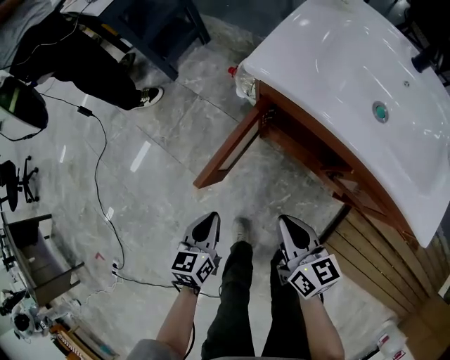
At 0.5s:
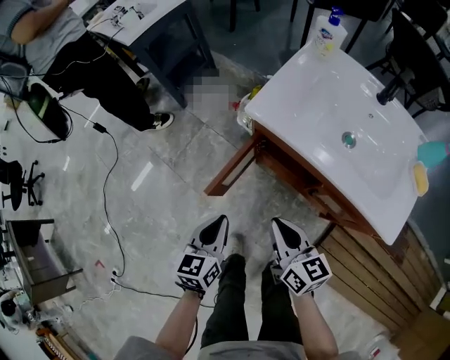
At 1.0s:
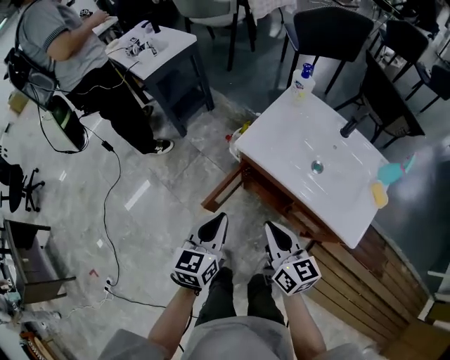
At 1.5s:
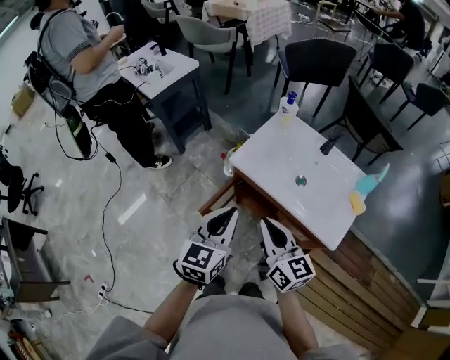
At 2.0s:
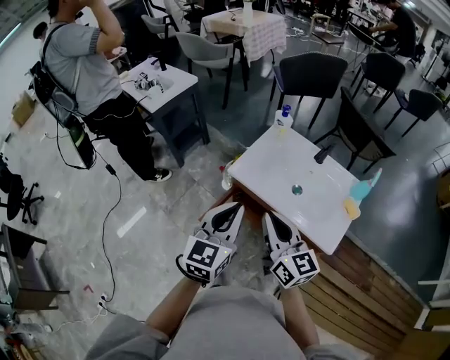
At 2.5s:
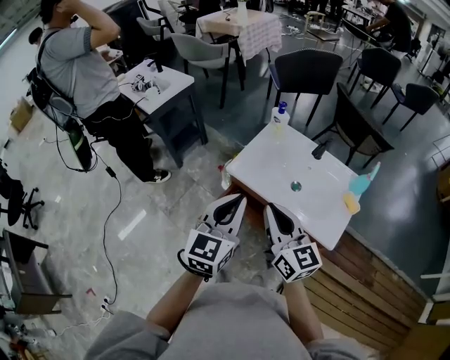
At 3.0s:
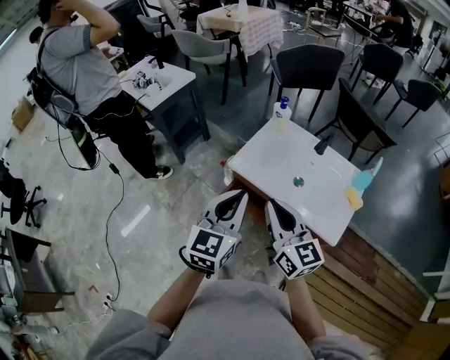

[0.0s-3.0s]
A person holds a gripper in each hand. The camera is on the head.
0.0s to 1.5s: Both grippers move upward, roughly 40 cm. The right gripper changes its angle by roughly 20 degrees. Meanwhile the left gripper changes its angle by roughly 30 degrees.
1.5s to 3.0s: Both grippers move upward, about 5 cm.

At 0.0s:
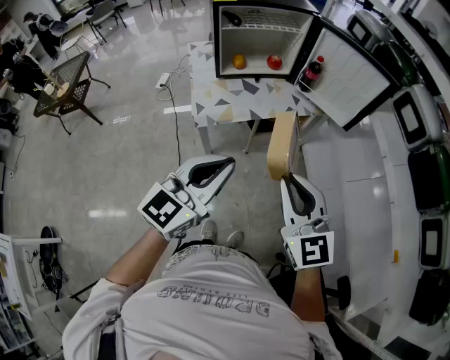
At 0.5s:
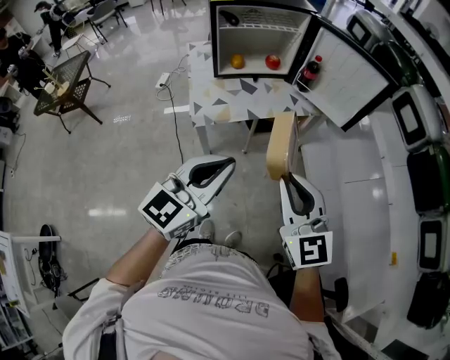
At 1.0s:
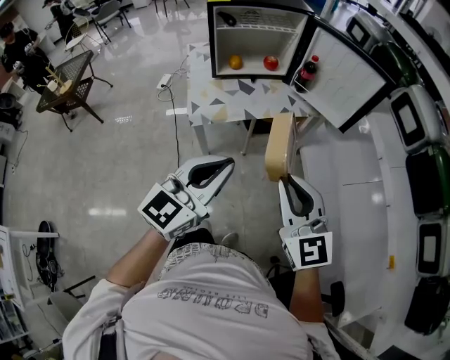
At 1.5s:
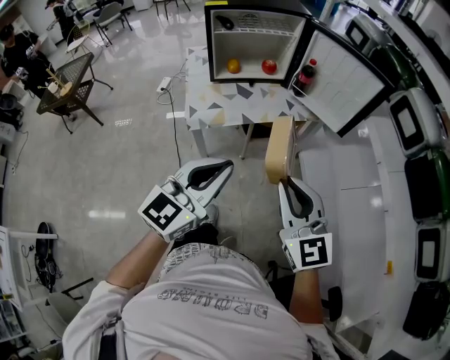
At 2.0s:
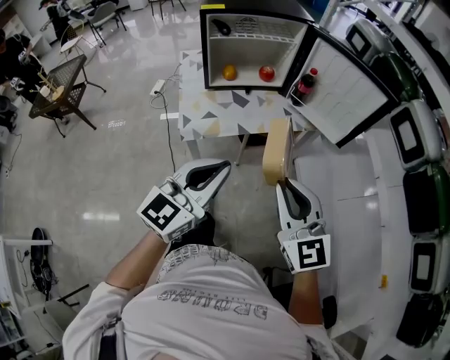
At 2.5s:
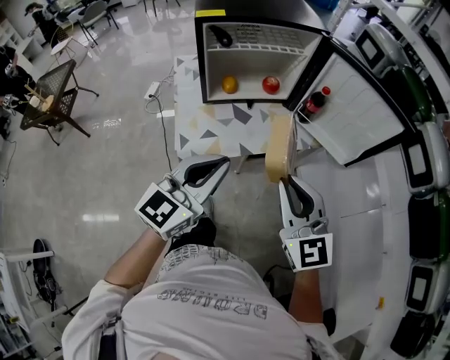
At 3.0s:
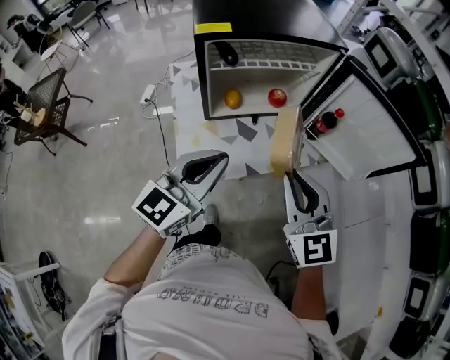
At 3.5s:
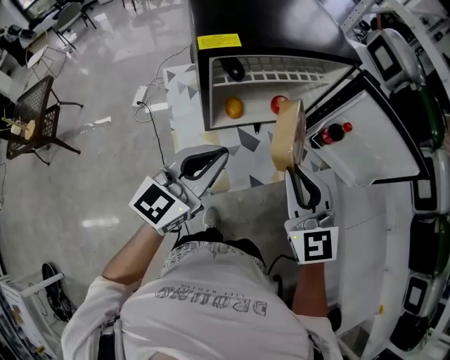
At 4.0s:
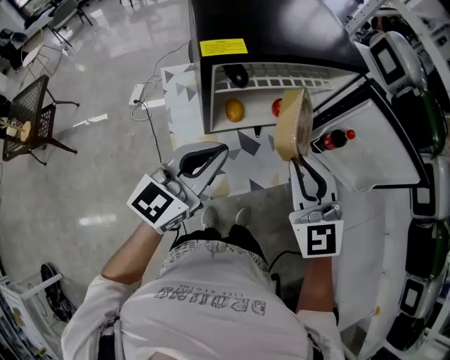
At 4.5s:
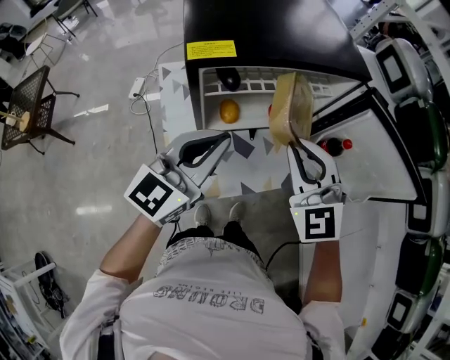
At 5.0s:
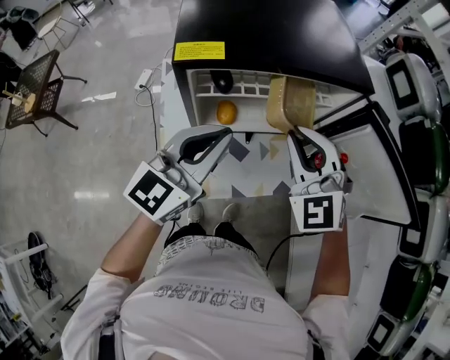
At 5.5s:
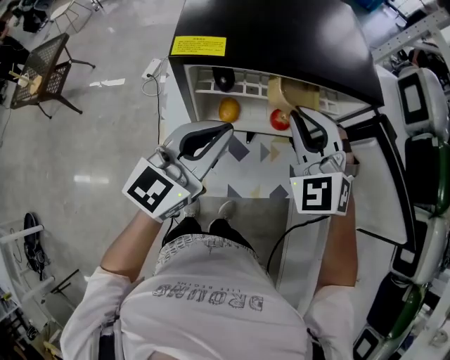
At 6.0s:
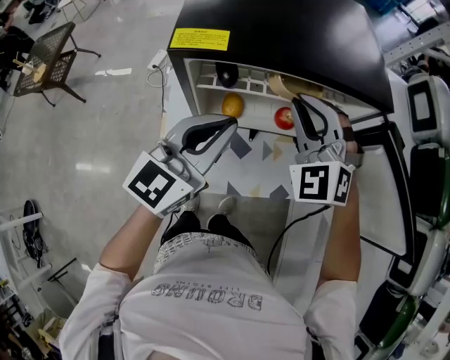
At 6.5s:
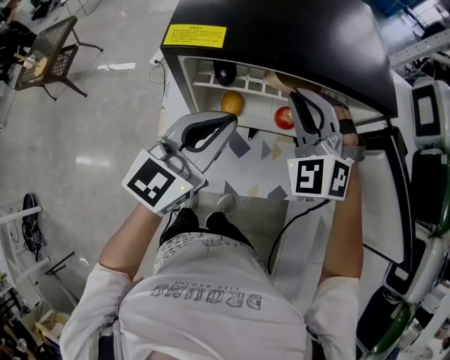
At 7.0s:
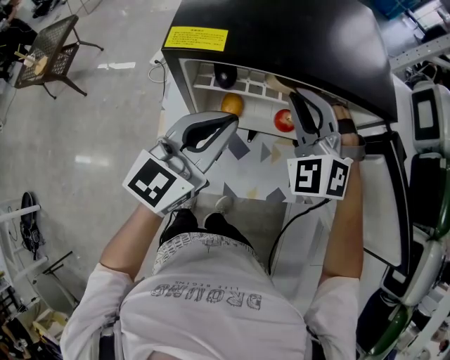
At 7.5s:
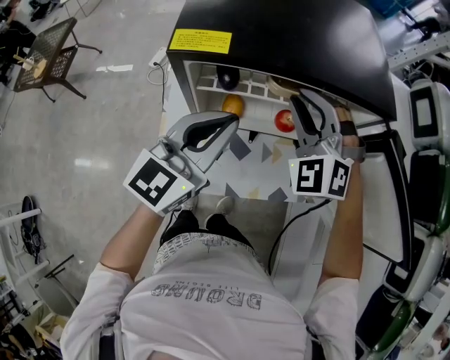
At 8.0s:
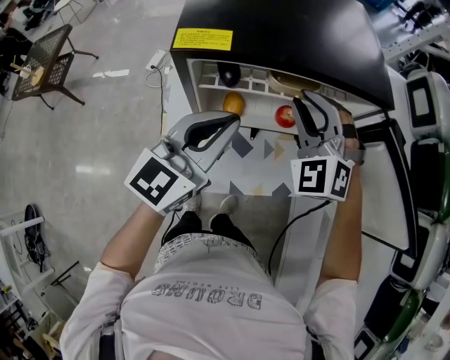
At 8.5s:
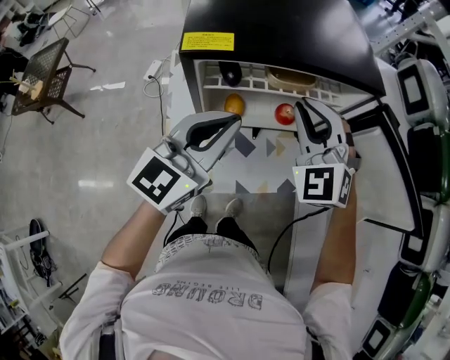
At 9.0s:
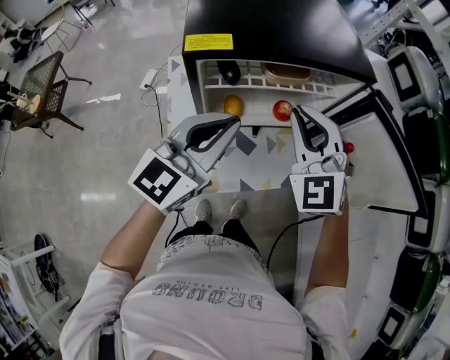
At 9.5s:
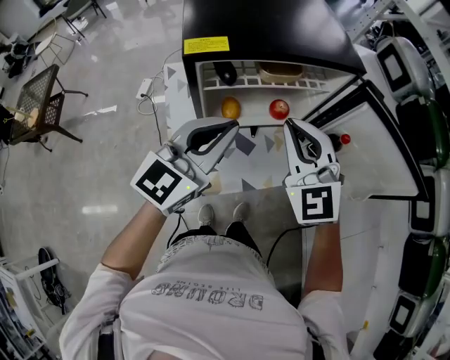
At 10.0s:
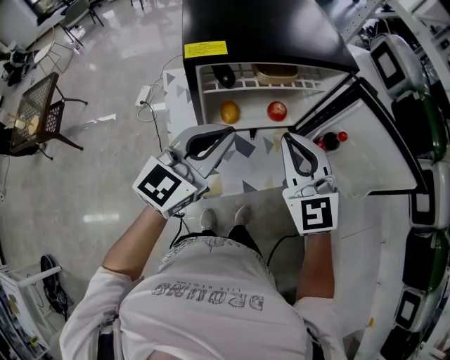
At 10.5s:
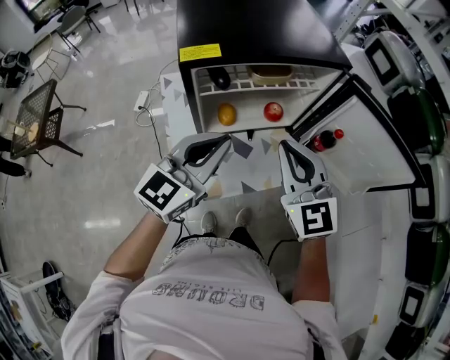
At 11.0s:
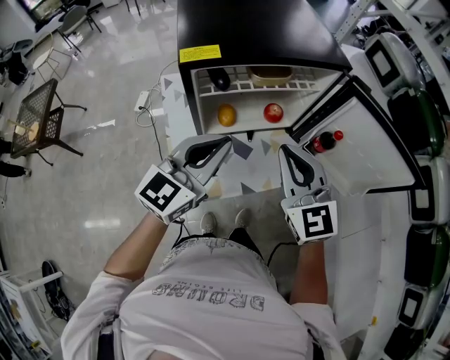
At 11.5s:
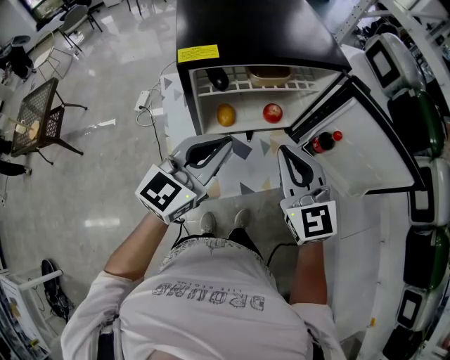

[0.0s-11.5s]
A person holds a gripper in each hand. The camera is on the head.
0.0s to 2.0s: Both grippers travel together forward, approximately 5 cm.
2.0s to 4.0s: The two grippers go roughly 40 cm forward and to the left.
4.0s to 6.0s: The right gripper is displaced forward by approximately 20 cm, and rotates approximately 40 degrees; the left gripper heads forward and to the right, covering approximately 10 cm.
6.0s to 7.5s: There are only small adjustments of the grippers.
7.5s to 9.5s: The left gripper shifts roughly 5 cm backward; the right gripper shifts some 15 cm backward, and rotates some 30 degrees.
9.5s to 11.5s: The right gripper ends up about 5 cm from where it was, and turns by about 20 degrees.

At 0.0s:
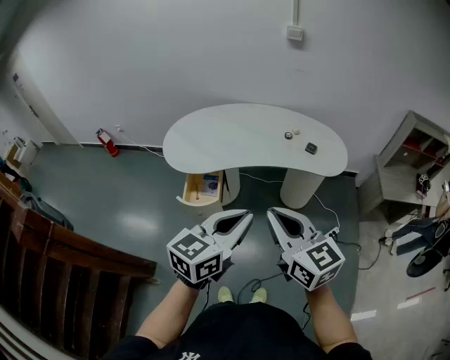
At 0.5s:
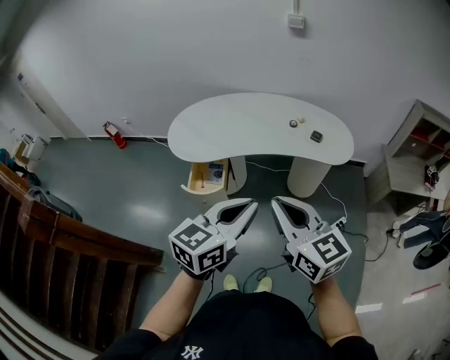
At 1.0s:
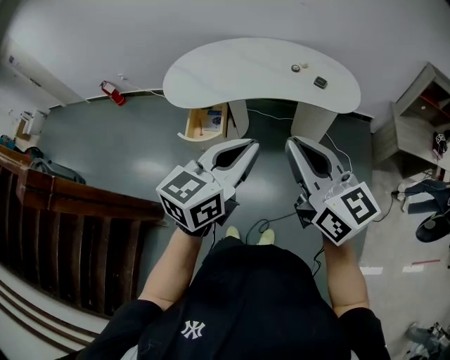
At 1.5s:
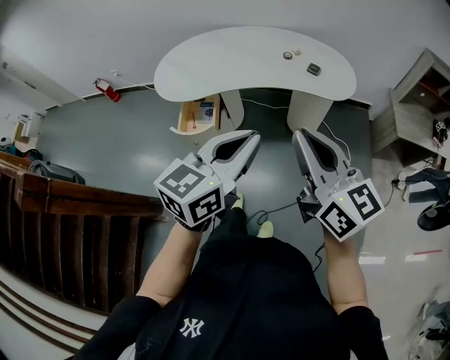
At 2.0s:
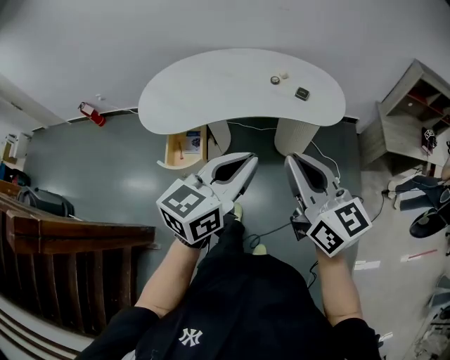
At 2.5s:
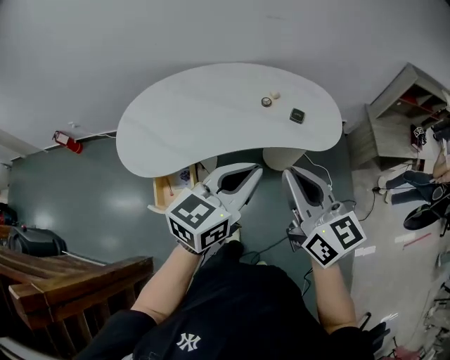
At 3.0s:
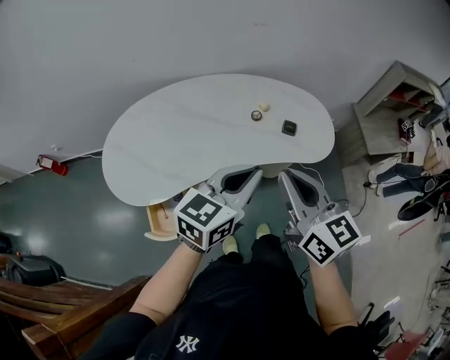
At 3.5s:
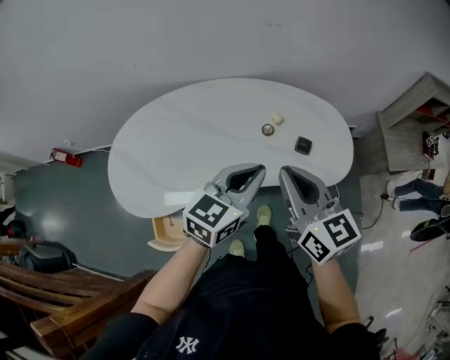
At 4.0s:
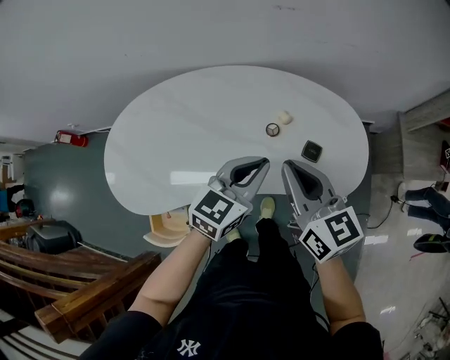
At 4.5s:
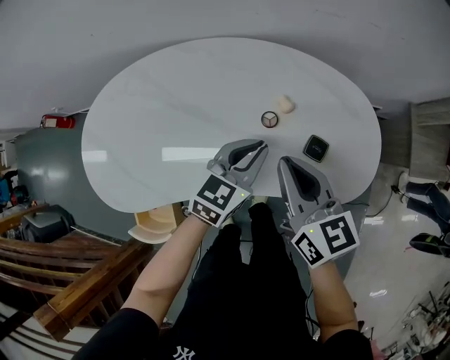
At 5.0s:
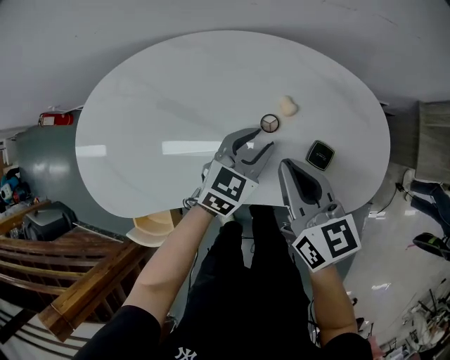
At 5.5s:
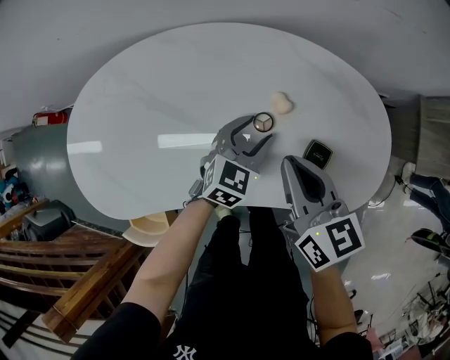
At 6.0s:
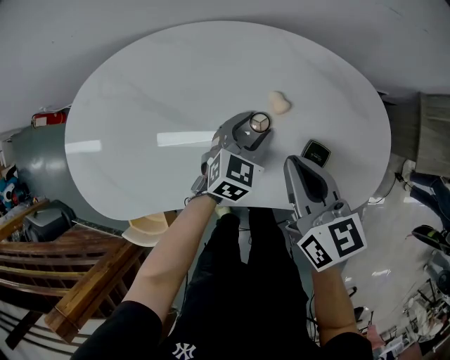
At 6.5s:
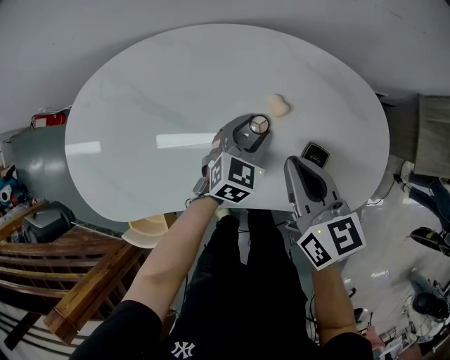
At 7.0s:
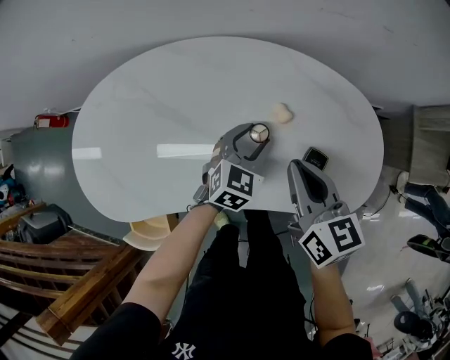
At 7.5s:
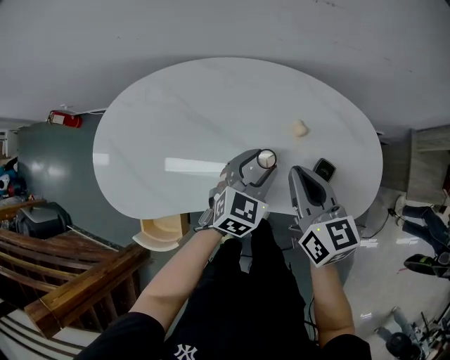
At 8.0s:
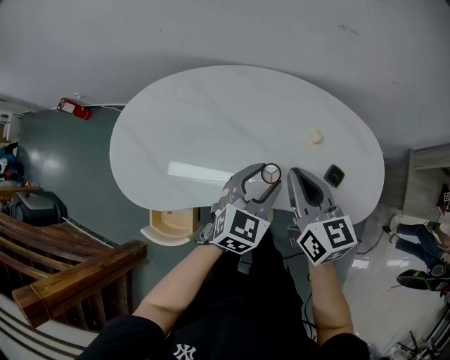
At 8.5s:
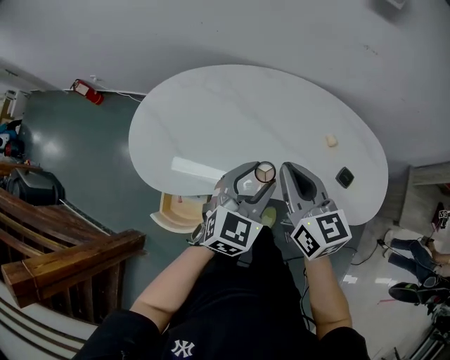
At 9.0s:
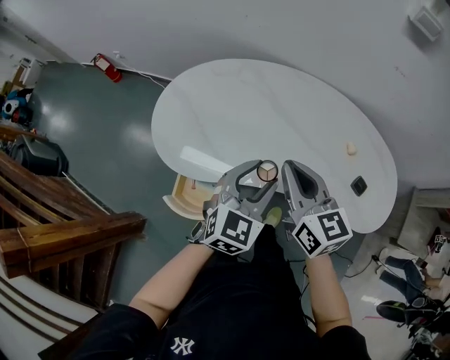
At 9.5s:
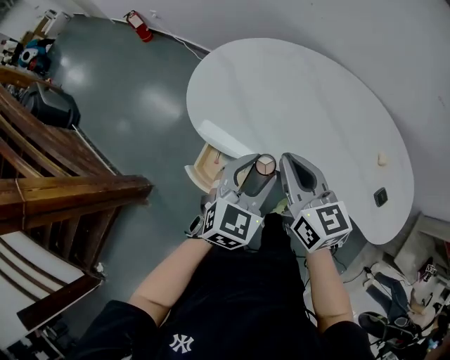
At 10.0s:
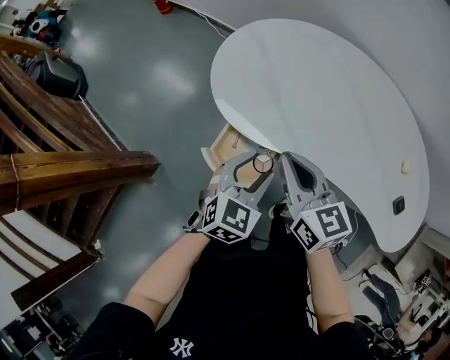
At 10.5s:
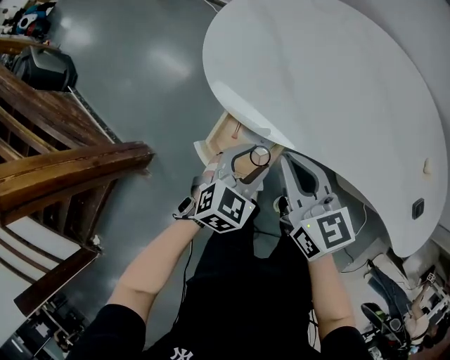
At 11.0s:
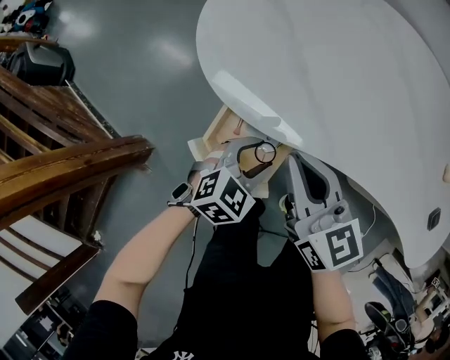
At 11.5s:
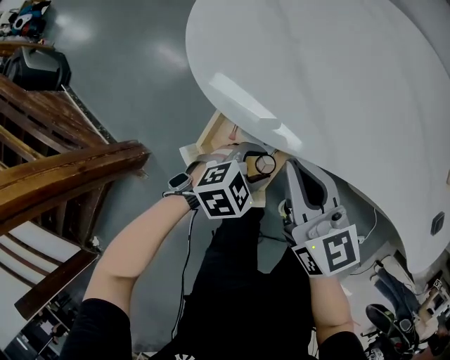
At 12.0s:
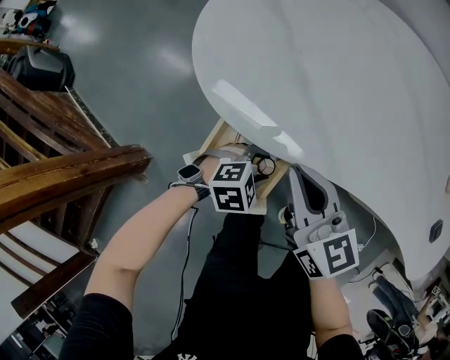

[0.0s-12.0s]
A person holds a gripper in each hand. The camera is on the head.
0.0s to 2.0s: Both grippers move to the right and forward, about 15 cm.
2.0s to 4.0s: The two grippers travel together, forward, roughly 40 cm.
4.0s to 6.0s: The left gripper travels downward and forward by roughly 30 cm, rotates some 20 degrees, and opens its fingers, while the right gripper travels downward and forward by roughly 20 cm.
6.0s to 8.0s: The left gripper is displaced upward, backward and to the left by roughly 25 cm; the right gripper travels to the left, upward and backward by roughly 15 cm.
8.0s to 10.0s: The left gripper goes upward and returns, roughly 5 cm each way, and turns by some 30 degrees. Meanwhile the right gripper moves about 40 cm, and rotates some 30 degrees.
10.0s to 12.0s: The left gripper moves downward, about 25 cm, and rotates approximately 50 degrees. The right gripper shifts some 15 cm downward.
